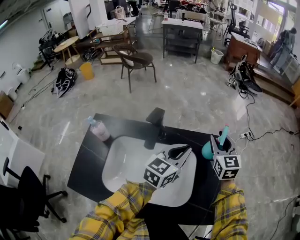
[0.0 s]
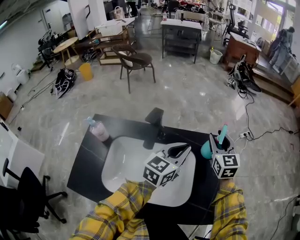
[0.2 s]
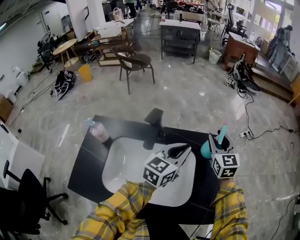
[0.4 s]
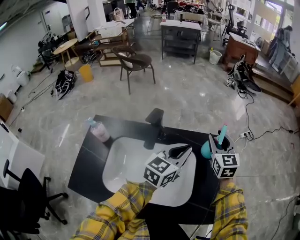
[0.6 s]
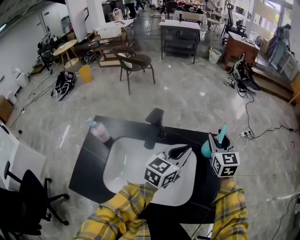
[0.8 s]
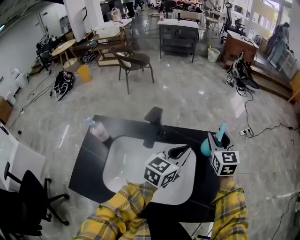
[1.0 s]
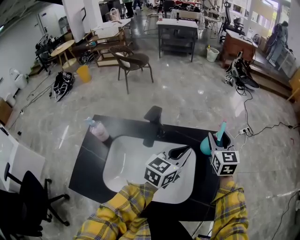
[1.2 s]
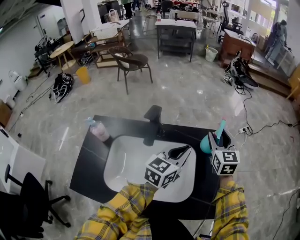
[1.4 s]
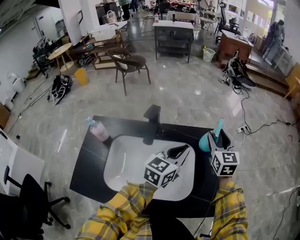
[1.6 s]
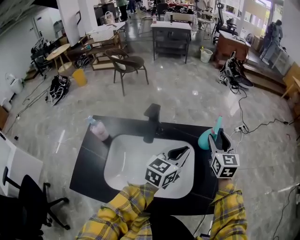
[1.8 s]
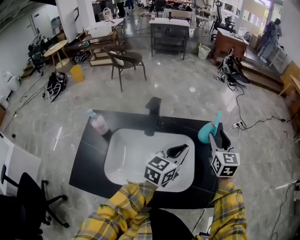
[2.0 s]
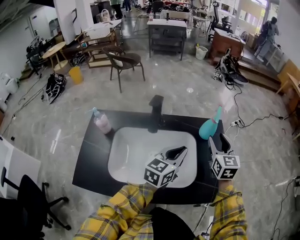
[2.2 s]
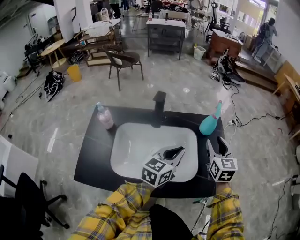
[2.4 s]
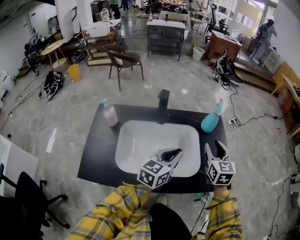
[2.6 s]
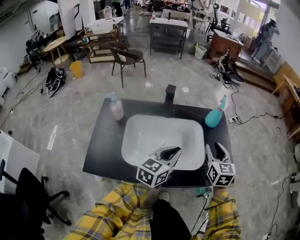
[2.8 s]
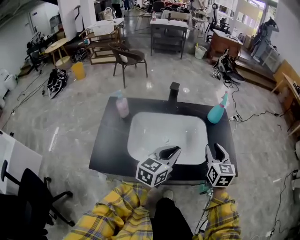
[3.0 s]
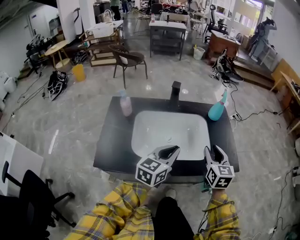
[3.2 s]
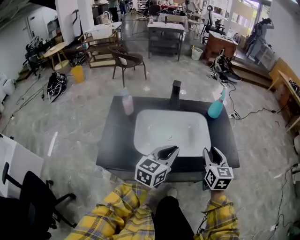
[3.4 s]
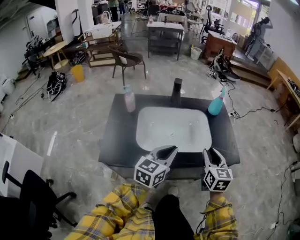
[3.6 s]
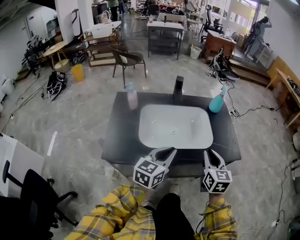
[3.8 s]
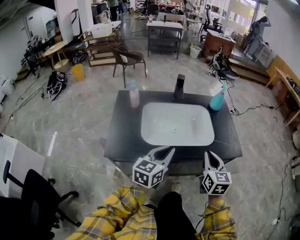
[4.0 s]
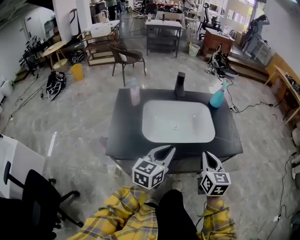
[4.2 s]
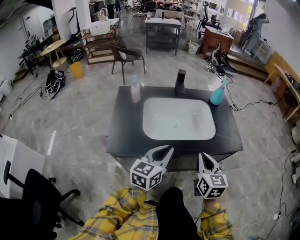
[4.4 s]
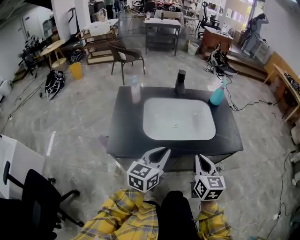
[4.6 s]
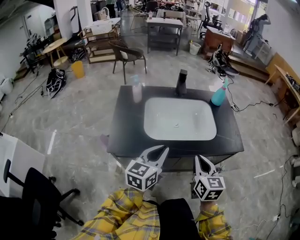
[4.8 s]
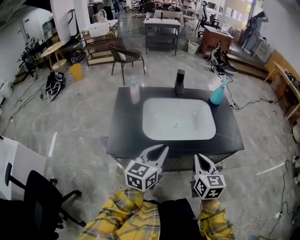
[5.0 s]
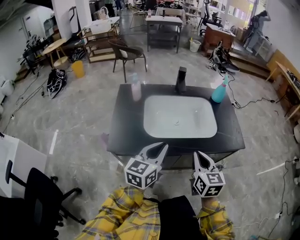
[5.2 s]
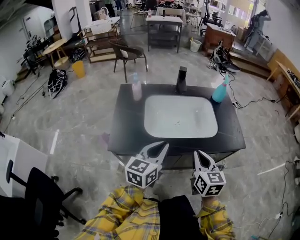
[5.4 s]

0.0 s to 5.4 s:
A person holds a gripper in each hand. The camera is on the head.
0.0 to 1.4 s: The grippers make only small movements.
1.4 to 2.8 s: The grippers both shift backward by about 25 cm.
2.8 to 4.0 s: The left gripper moves backward and to the left, about 20 cm. The right gripper is displaced backward by some 25 cm, and closes.
4.0 to 5.4 s: The right gripper shifts roughly 10 cm to the left and backward; the left gripper ends up about 5 cm from where it was.

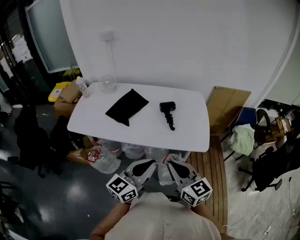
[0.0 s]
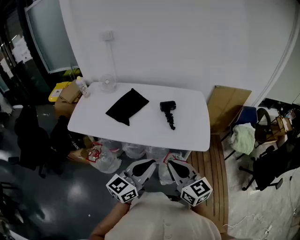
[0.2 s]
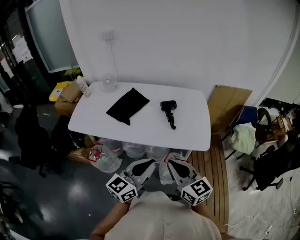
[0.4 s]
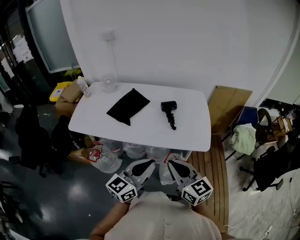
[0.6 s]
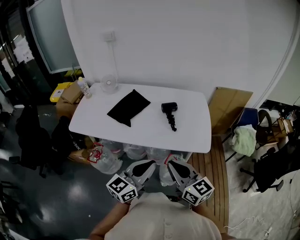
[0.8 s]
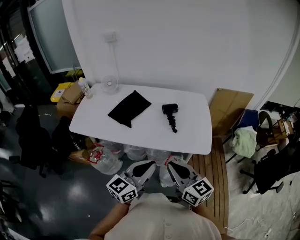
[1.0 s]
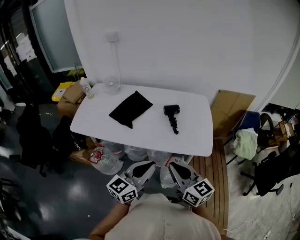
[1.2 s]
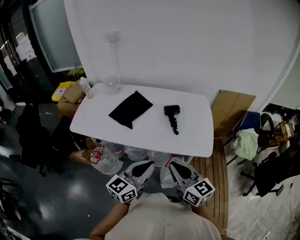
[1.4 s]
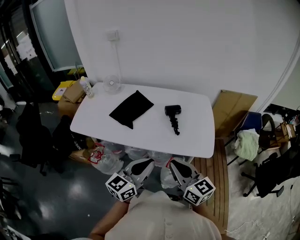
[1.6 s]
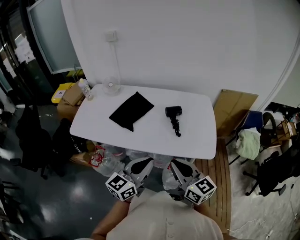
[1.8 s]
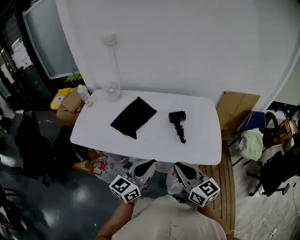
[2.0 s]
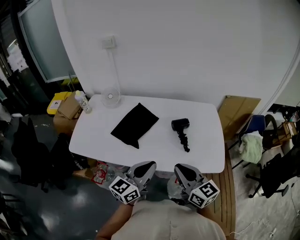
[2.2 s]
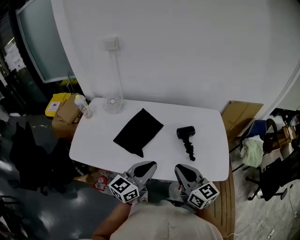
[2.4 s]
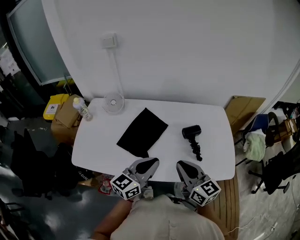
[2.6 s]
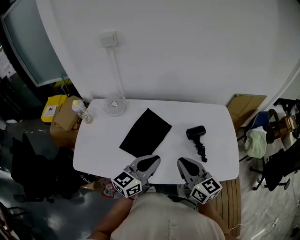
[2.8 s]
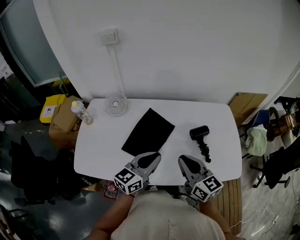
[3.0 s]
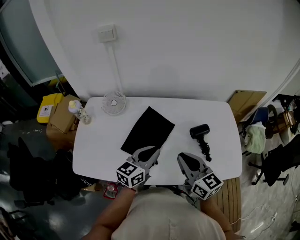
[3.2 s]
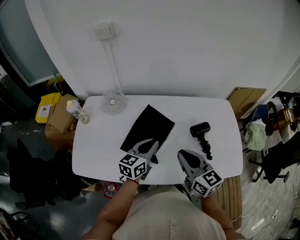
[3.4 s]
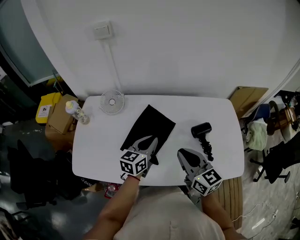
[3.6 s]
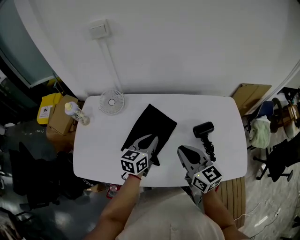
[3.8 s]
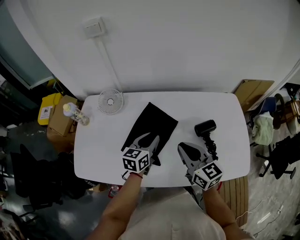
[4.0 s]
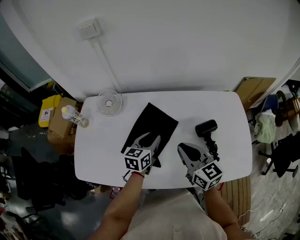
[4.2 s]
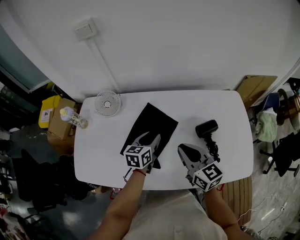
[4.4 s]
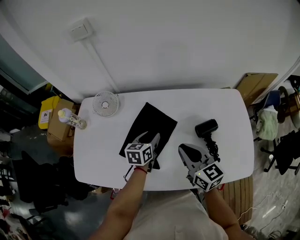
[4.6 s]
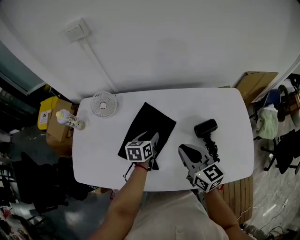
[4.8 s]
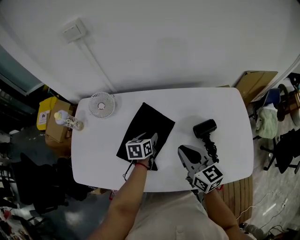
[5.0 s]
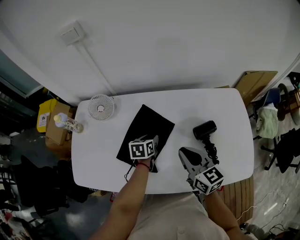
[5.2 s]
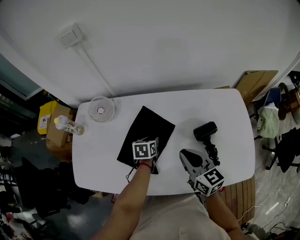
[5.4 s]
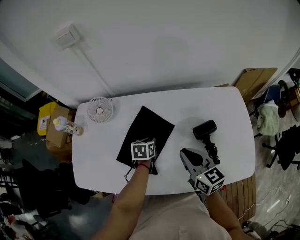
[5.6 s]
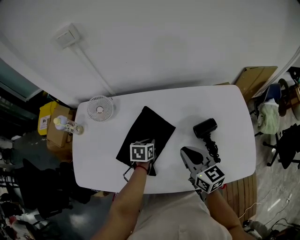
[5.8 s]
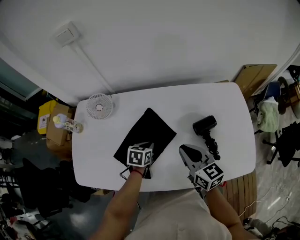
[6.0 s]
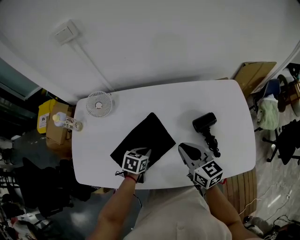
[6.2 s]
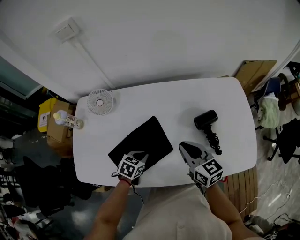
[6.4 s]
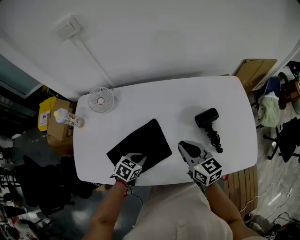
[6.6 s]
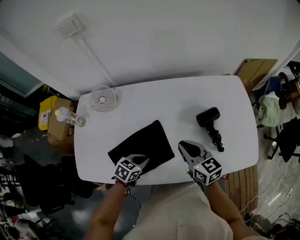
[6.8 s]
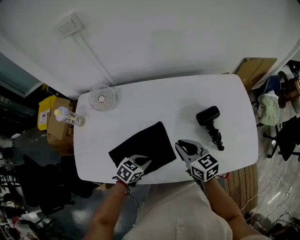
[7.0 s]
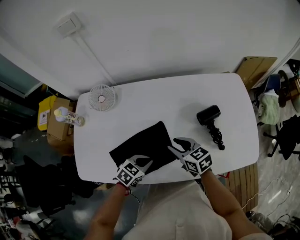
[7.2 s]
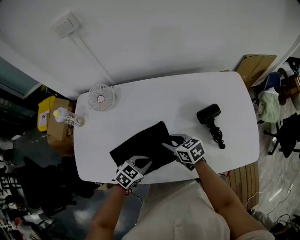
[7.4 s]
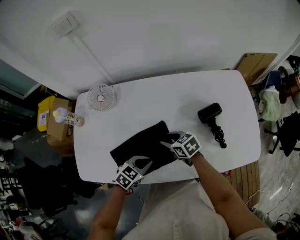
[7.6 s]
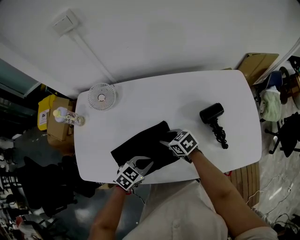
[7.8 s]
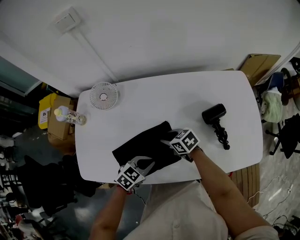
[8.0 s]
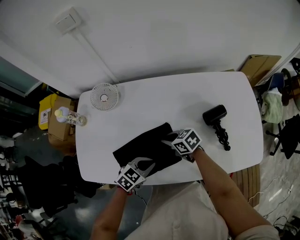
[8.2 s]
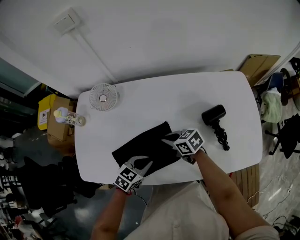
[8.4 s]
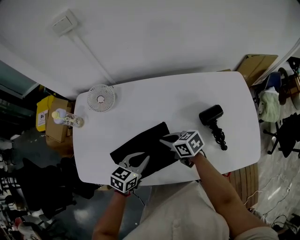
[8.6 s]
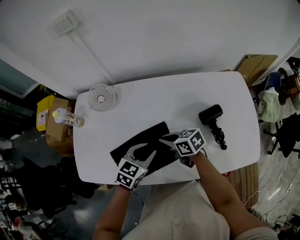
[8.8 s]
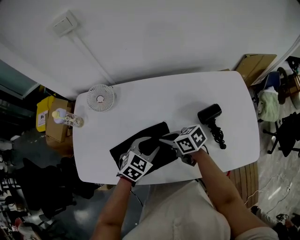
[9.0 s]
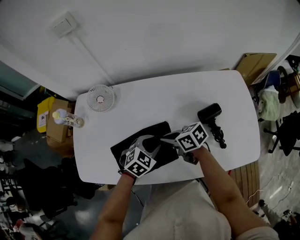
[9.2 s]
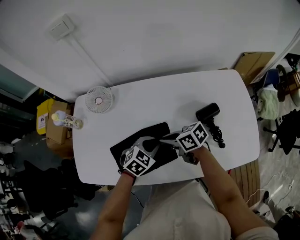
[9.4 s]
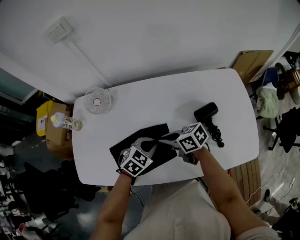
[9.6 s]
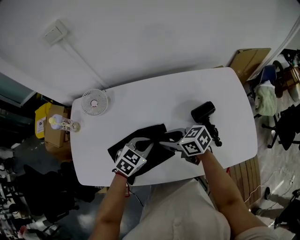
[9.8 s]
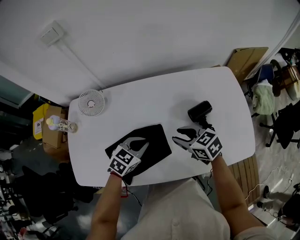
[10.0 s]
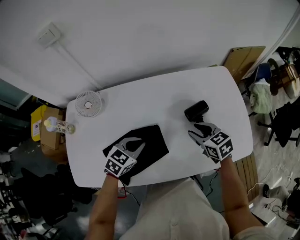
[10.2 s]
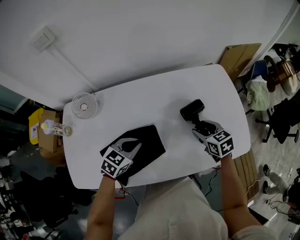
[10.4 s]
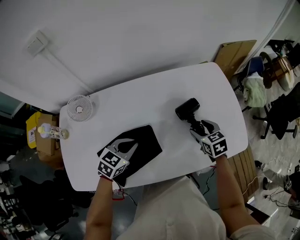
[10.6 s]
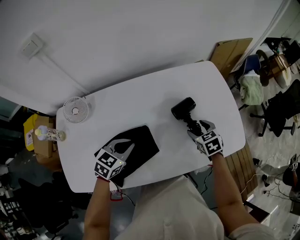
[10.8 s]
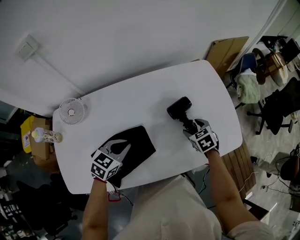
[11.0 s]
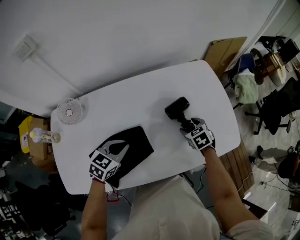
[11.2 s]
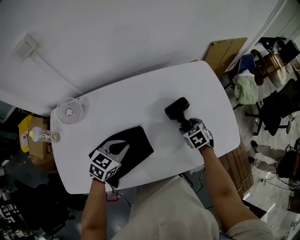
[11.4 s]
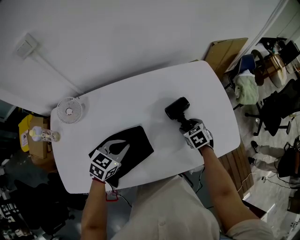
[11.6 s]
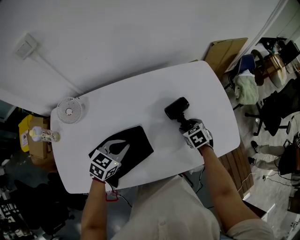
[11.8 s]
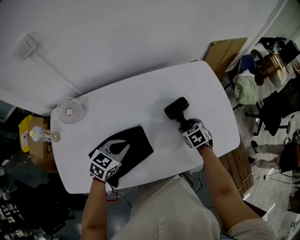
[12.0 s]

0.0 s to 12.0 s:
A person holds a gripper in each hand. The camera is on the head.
0.0 to 1.6 s: The grippers make only small movements.
1.6 to 3.0 s: The two grippers go roughly 35 cm forward and to the left.
3.0 to 4.4 s: The left gripper moves forward and downward, roughly 20 cm, changes its angle by about 30 degrees, and opens up. The right gripper travels forward and downward by some 10 cm.
4.4 to 6.0 s: The left gripper travels downward by approximately 10 cm, changes its angle by roughly 30 degrees, and closes up.
6.0 to 7.6 s: The left gripper travels backward by roughly 15 cm, and turns by some 30 degrees. Meanwhile the right gripper moves downward and to the left, some 20 cm, swivels some 30 degrees, and opens.
7.6 to 9.0 s: The right gripper is displaced upward by about 5 cm, and closes. Meanwhile the left gripper changes place by some 10 cm.
9.0 to 10.4 s: The right gripper changes place by about 25 cm, swivels roughly 40 degrees, and opens; the left gripper closes up.
10.4 to 12.0 s: The right gripper is displaced downward by some 10 cm, and changes its angle by some 20 degrees.

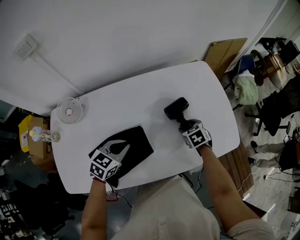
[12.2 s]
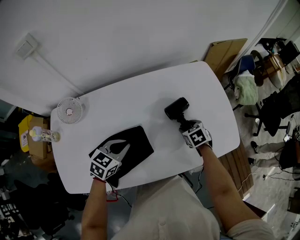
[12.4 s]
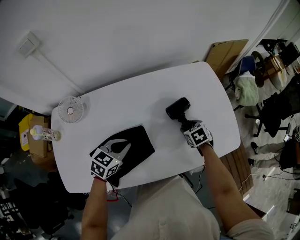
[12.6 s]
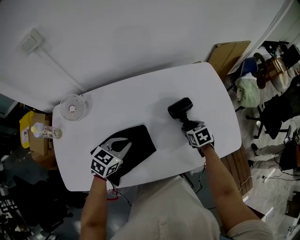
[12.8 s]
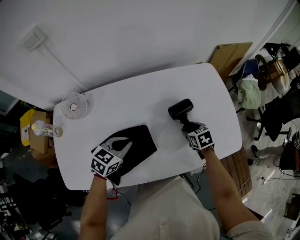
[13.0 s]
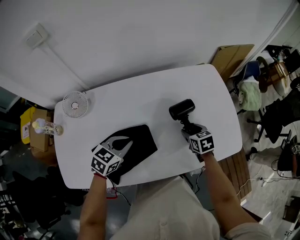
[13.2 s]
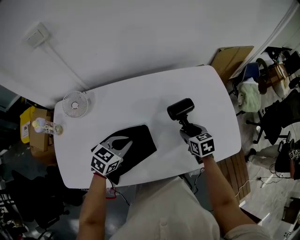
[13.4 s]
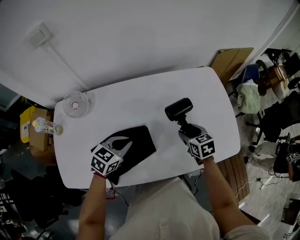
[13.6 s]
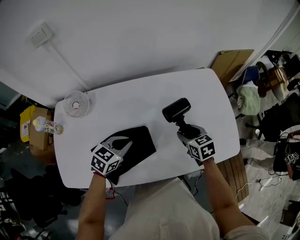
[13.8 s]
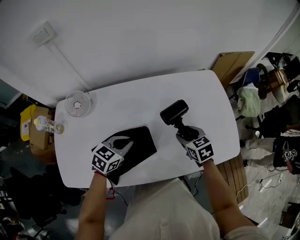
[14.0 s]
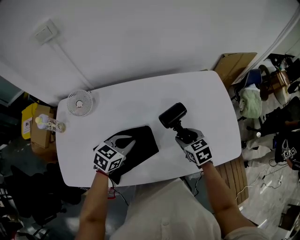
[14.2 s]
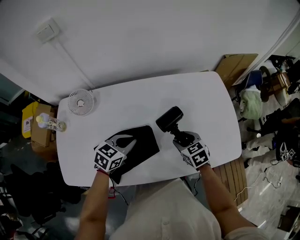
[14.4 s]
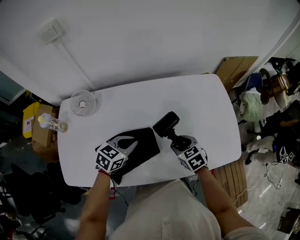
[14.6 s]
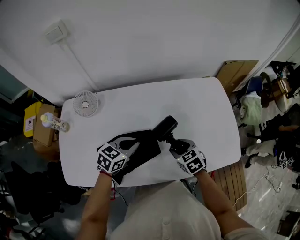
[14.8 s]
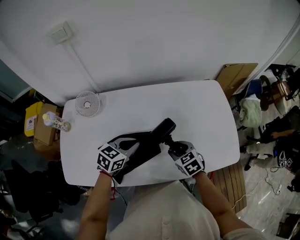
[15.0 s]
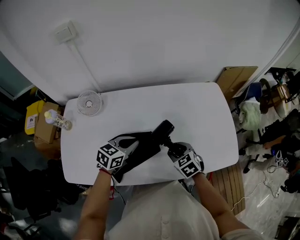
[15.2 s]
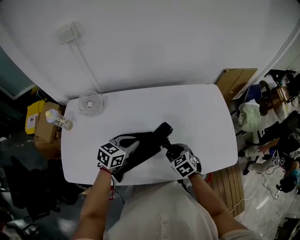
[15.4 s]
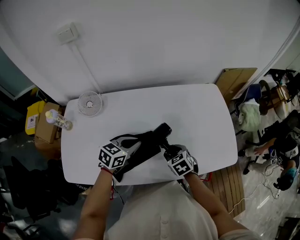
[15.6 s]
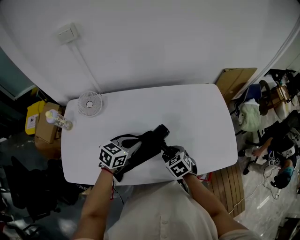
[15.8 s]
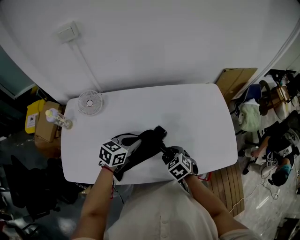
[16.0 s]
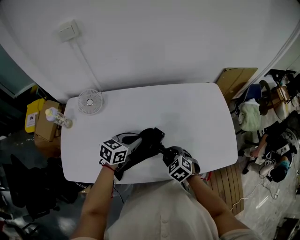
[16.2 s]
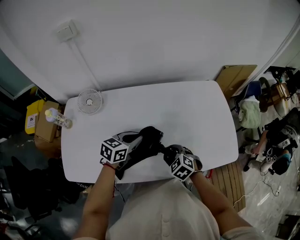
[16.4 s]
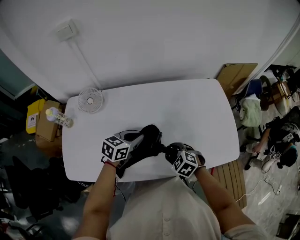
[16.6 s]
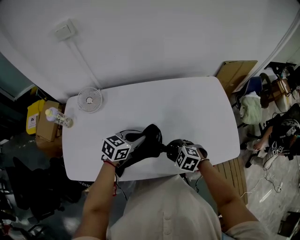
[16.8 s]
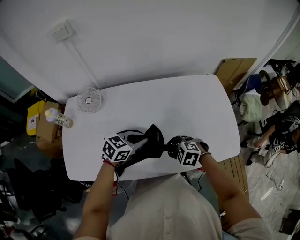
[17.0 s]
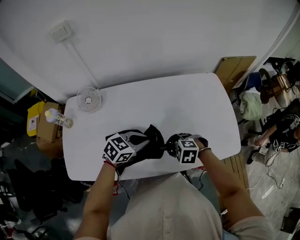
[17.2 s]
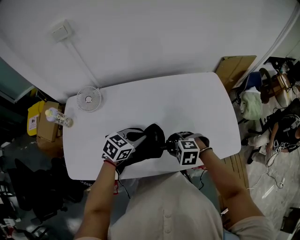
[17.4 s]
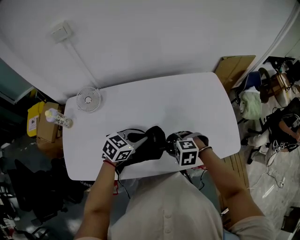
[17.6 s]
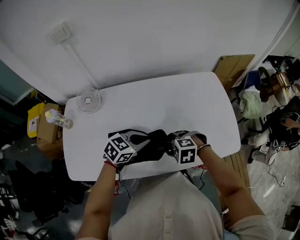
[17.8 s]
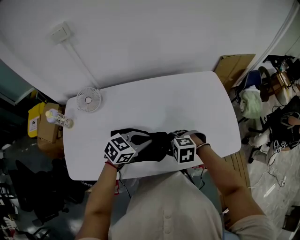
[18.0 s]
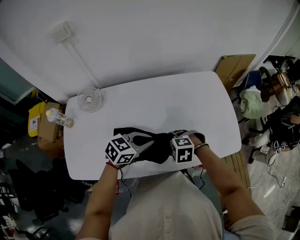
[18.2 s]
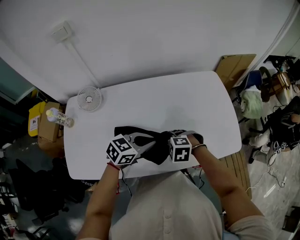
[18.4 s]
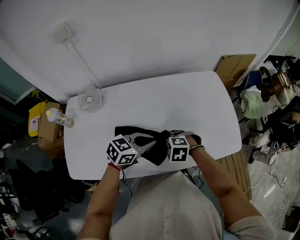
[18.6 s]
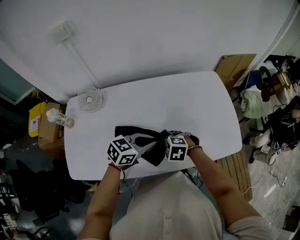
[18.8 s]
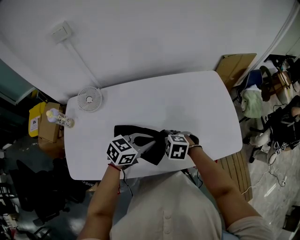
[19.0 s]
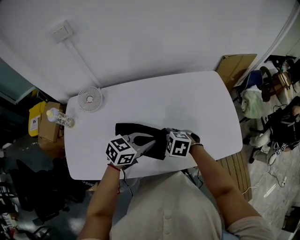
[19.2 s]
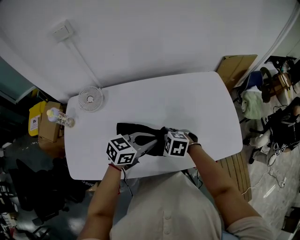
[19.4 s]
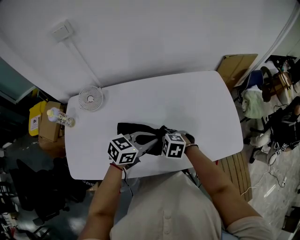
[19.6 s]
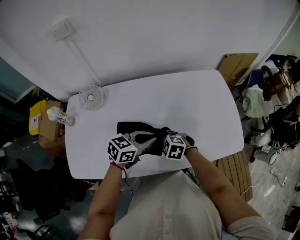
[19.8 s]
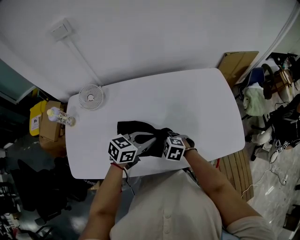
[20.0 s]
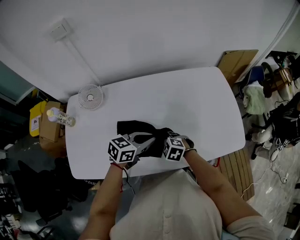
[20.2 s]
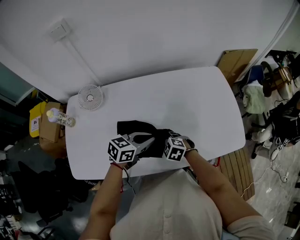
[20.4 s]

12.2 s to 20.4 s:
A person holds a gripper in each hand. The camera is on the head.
12.2 to 13.8 s: The right gripper travels upward by approximately 10 cm.
13.8 to 15.4 s: The right gripper goes about 10 cm backward and to the left, and changes its angle by some 20 degrees.
15.4 to 17.2 s: The right gripper turns by some 40 degrees. Meanwhile the left gripper moves some 5 cm.
17.2 to 18.8 s: The grippers move only a little.
18.8 to 20.4 s: The right gripper goes roughly 5 cm downward.
